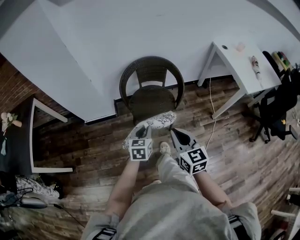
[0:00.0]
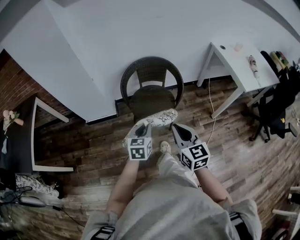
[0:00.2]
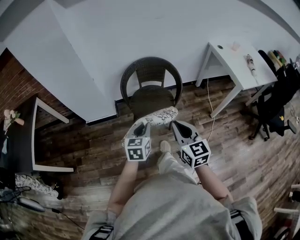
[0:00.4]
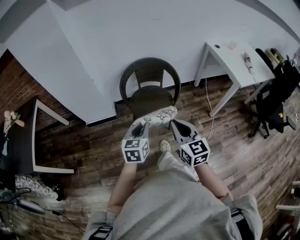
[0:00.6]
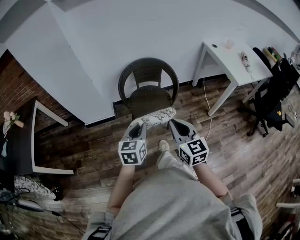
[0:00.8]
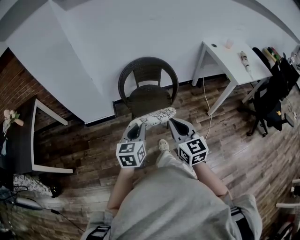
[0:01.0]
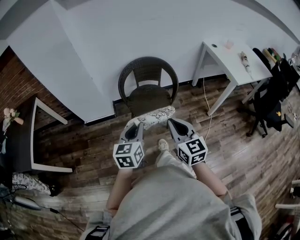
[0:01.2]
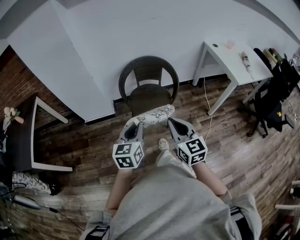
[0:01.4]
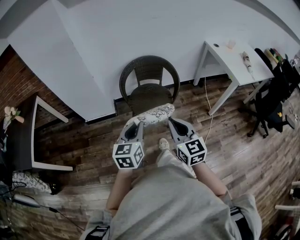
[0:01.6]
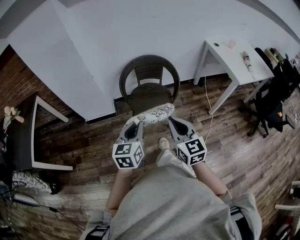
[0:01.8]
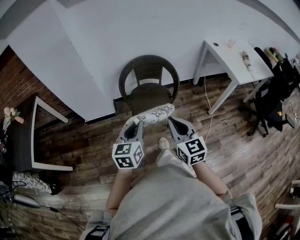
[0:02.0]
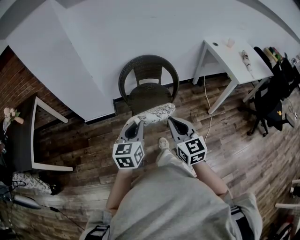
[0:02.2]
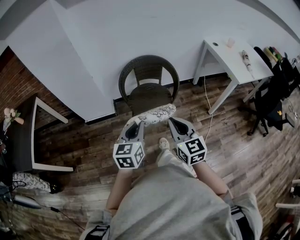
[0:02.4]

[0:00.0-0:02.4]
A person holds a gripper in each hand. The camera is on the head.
0:00.0 to 0:01.2: The right gripper travels backward by approximately 10 cm. The left gripper is displaced upward and backward by some 15 cm.
0:01.2 to 0:02.4: Neither gripper changes place.

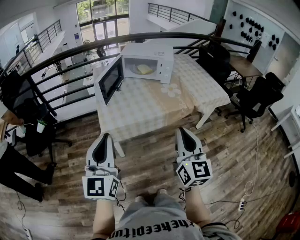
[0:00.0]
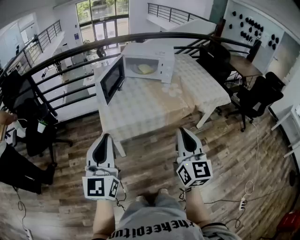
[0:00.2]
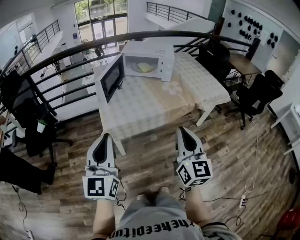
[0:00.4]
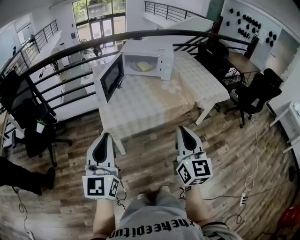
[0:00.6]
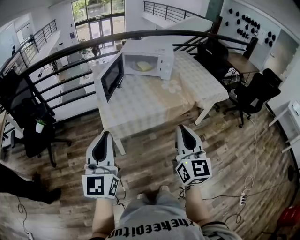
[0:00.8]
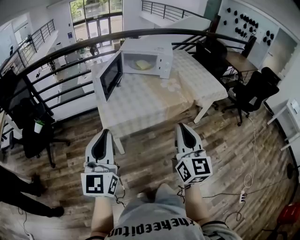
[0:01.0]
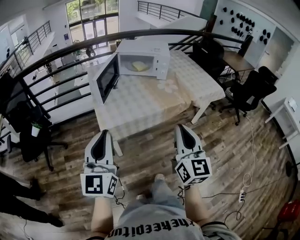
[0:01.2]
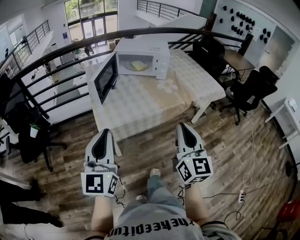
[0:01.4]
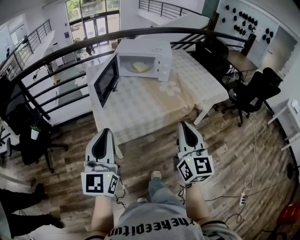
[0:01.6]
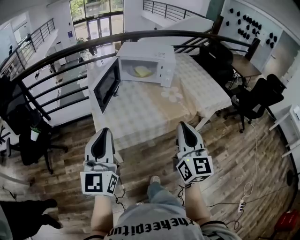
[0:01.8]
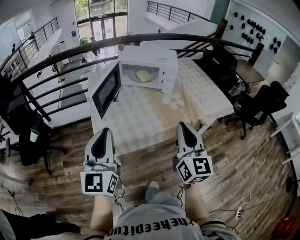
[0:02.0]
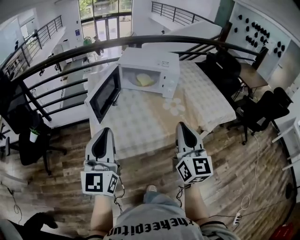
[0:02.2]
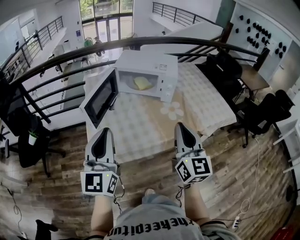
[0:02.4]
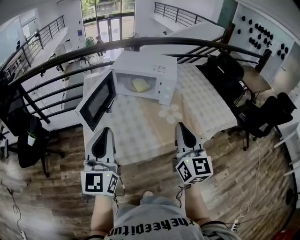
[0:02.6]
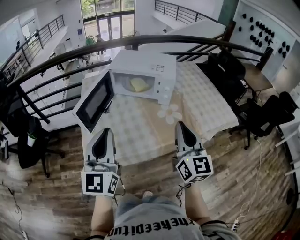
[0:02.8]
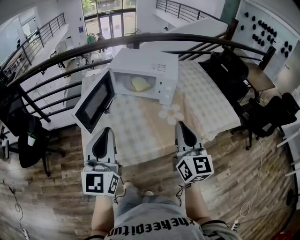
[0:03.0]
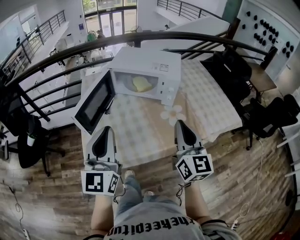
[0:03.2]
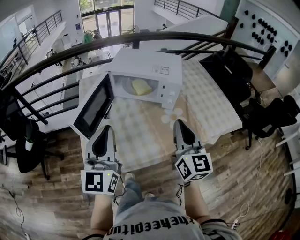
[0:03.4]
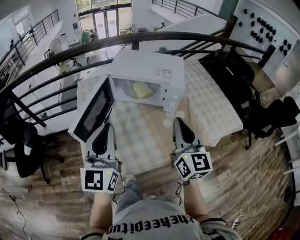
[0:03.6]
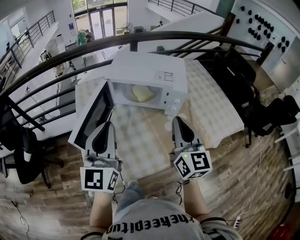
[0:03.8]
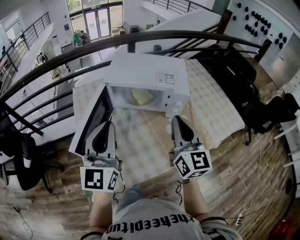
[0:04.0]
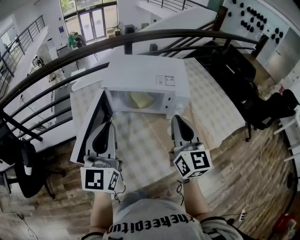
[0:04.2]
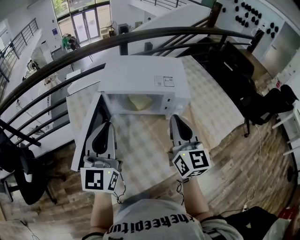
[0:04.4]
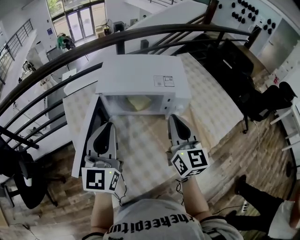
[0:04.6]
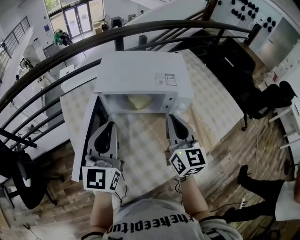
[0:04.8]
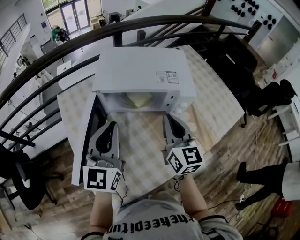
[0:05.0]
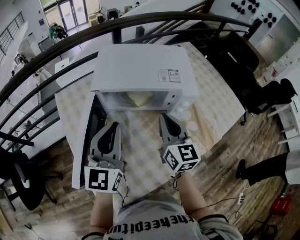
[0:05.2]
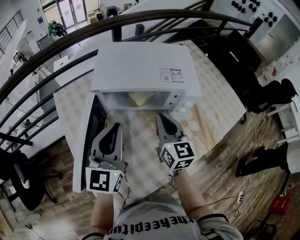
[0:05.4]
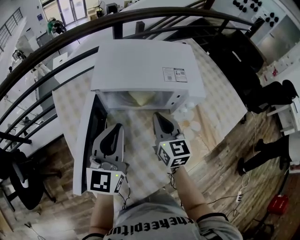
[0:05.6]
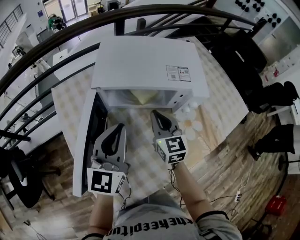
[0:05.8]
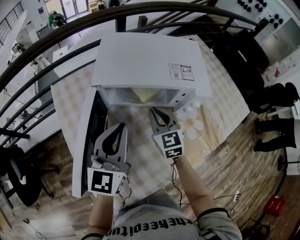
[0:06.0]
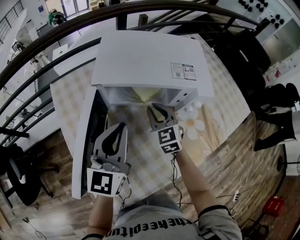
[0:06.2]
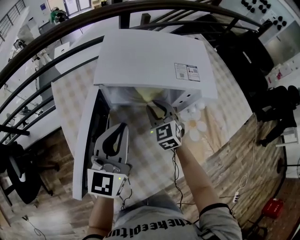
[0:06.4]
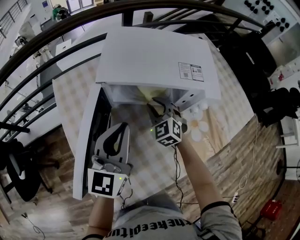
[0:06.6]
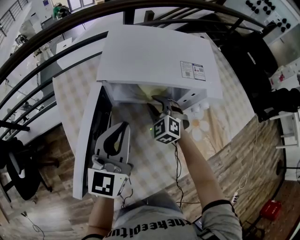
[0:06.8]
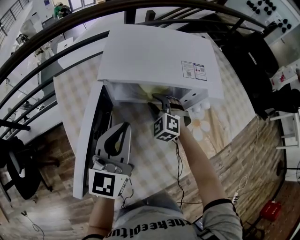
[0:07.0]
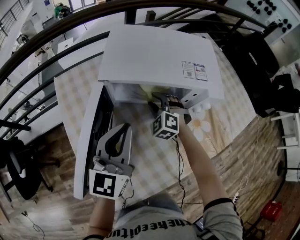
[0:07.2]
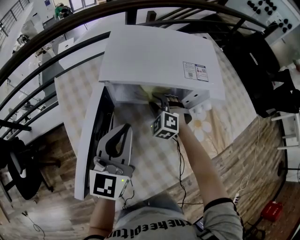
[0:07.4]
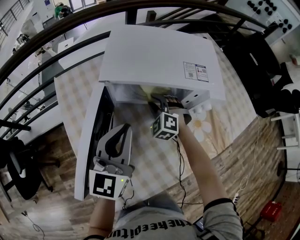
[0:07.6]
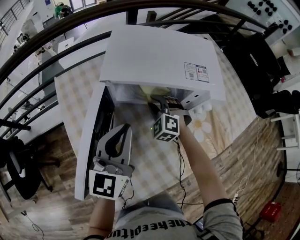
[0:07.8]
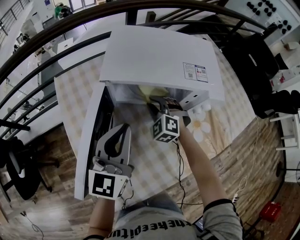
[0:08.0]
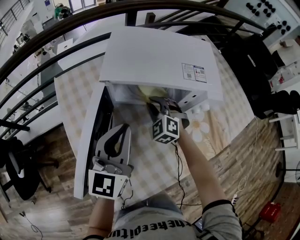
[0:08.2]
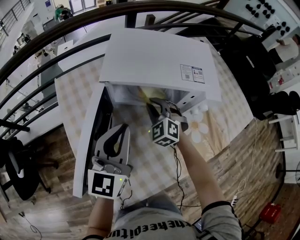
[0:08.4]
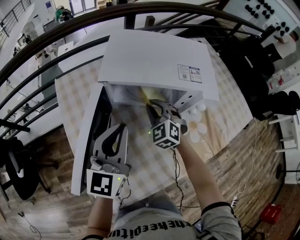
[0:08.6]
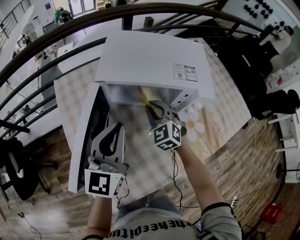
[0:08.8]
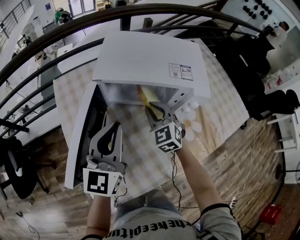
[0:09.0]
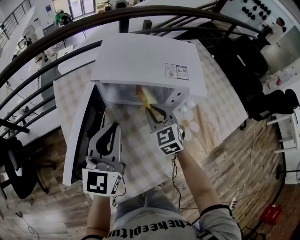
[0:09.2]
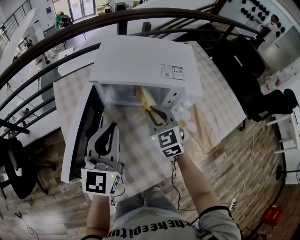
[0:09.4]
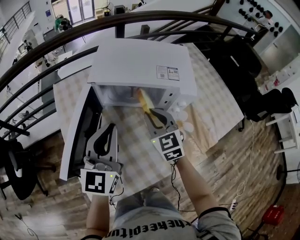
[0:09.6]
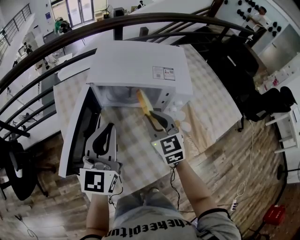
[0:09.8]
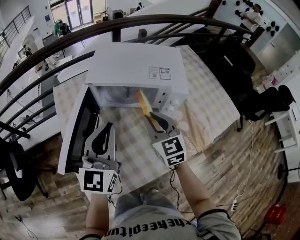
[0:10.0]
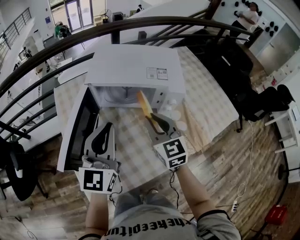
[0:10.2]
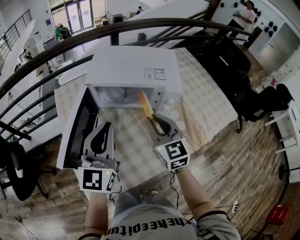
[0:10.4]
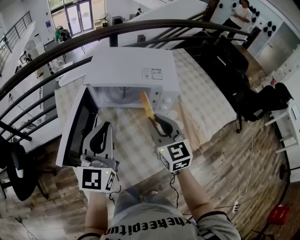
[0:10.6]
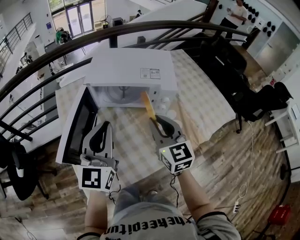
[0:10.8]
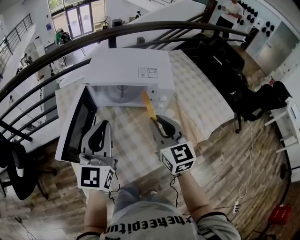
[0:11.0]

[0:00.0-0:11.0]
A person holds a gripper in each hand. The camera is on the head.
0:00.0 to 0:01.6: The grippers both shift forward by approximately 5 cm.
0:01.6 to 0:03.2: The right gripper is displaced forward by some 30 cm. The left gripper heads forward and to the right, covering approximately 25 cm.
0:03.2 to 0:04.8: The left gripper heads forward, covering some 25 cm. Meanwhile the right gripper shifts approximately 25 cm forward and to the left.
0:04.8 to 0:06.2: The right gripper heads downward, forward and to the left, covering roughly 25 cm, and swivels approximately 40 degrees. Meanwhile the left gripper is displaced downward by some 10 cm.
0:06.2 to 0:07.8: The right gripper heads downward, covering approximately 5 cm, and rolls counterclockwise, seen from behind, by roughly 40 degrees.
0:07.8 to 0:09.4: The right gripper travels upward and backward by approximately 15 cm, and turns by roughly 40 degrees. Meanwhile the left gripper shifts by approximately 5 cm.
0:09.4 to 0:11.0: The left gripper travels backward and upward by approximately 10 cm. The right gripper is displaced backward, upward and to the right by some 20 cm, and swivels about 20 degrees.

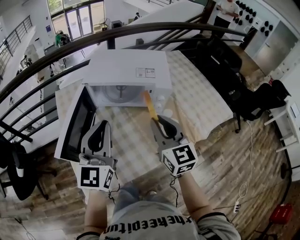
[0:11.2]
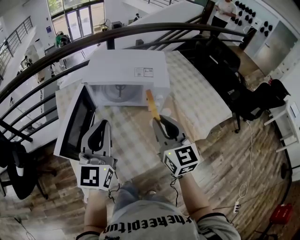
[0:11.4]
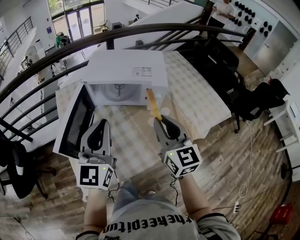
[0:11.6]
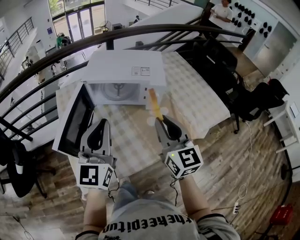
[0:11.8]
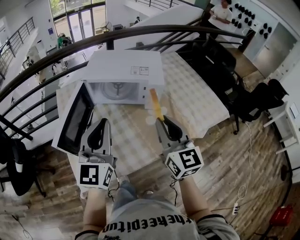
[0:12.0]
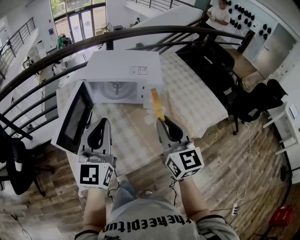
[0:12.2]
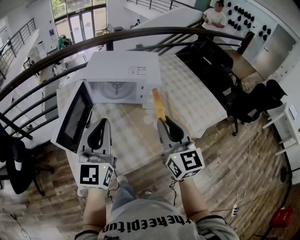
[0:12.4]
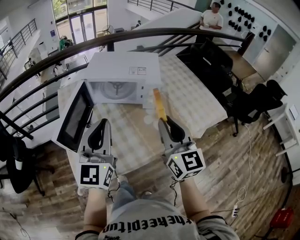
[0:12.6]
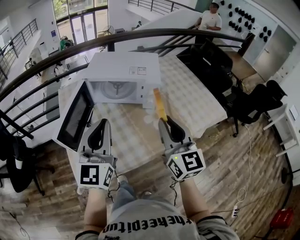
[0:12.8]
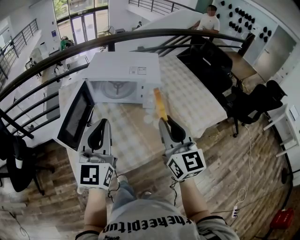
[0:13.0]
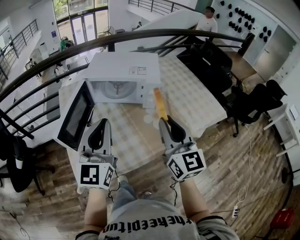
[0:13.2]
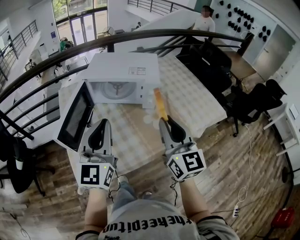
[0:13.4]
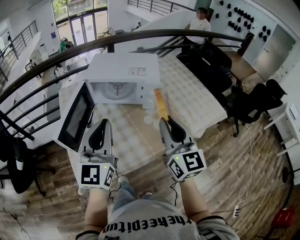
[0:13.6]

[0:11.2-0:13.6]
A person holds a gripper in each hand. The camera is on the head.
0:11.2 to 0:12.4: The right gripper heads backward, to the right and upward, covering some 10 cm. The left gripper goes some 5 cm backward.
0:12.4 to 0:13.6: There are only small adjustments of the grippers.

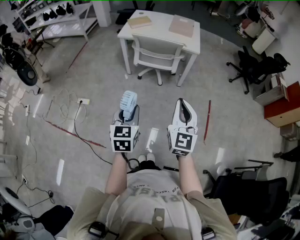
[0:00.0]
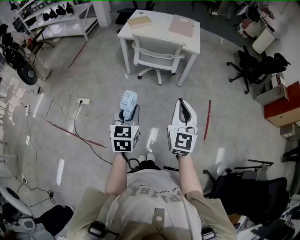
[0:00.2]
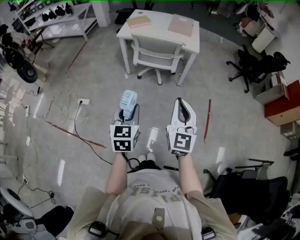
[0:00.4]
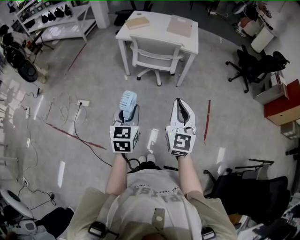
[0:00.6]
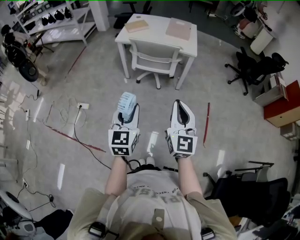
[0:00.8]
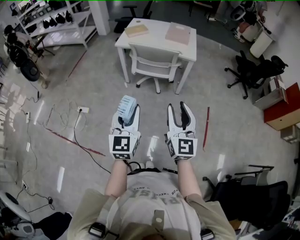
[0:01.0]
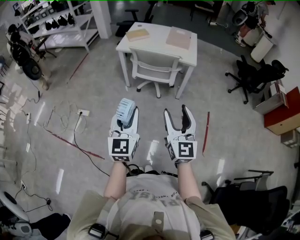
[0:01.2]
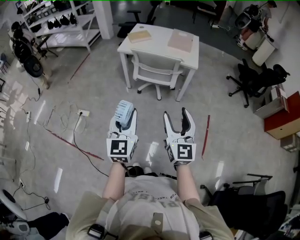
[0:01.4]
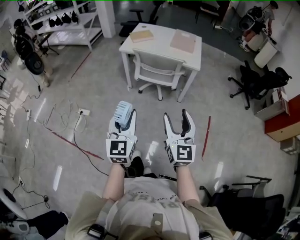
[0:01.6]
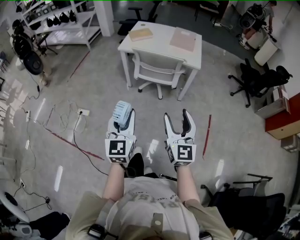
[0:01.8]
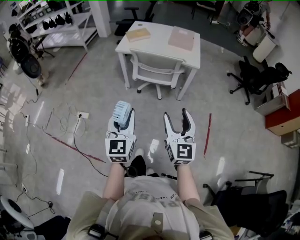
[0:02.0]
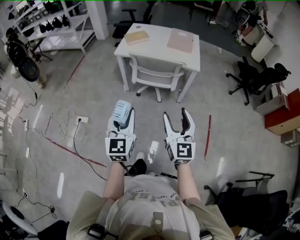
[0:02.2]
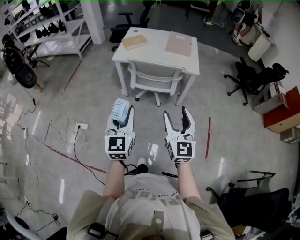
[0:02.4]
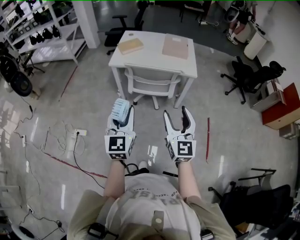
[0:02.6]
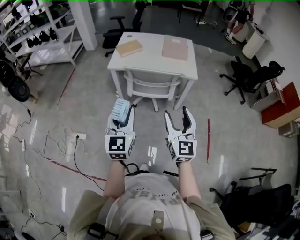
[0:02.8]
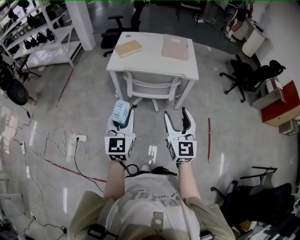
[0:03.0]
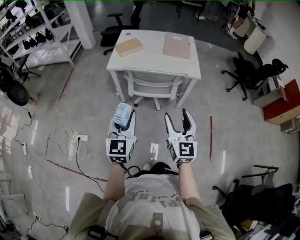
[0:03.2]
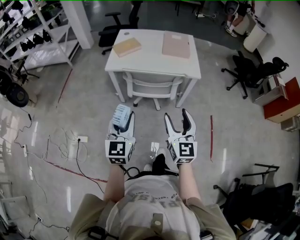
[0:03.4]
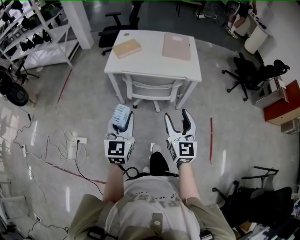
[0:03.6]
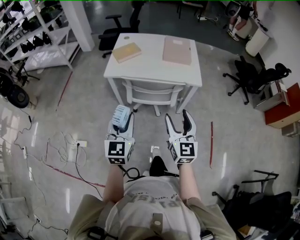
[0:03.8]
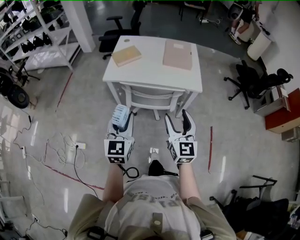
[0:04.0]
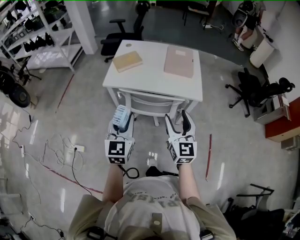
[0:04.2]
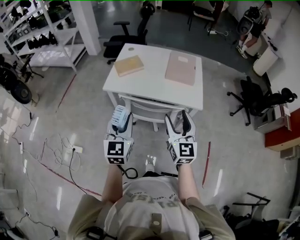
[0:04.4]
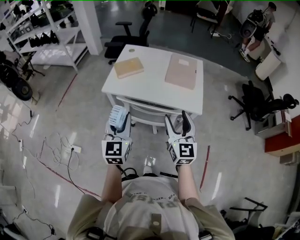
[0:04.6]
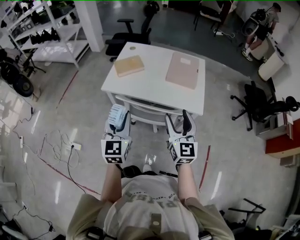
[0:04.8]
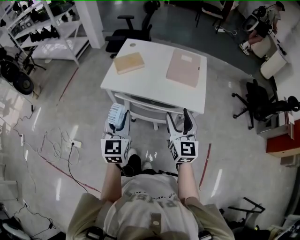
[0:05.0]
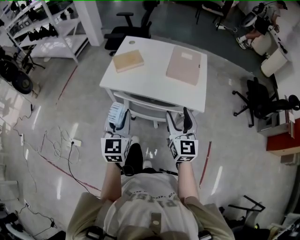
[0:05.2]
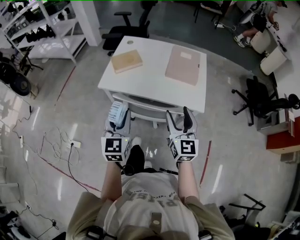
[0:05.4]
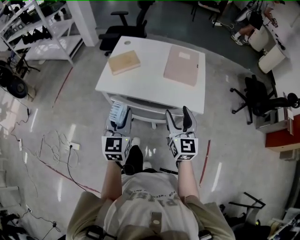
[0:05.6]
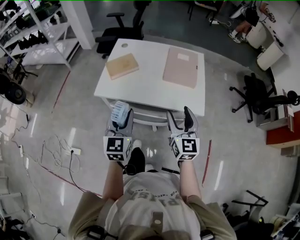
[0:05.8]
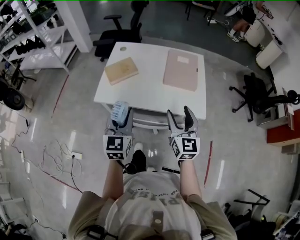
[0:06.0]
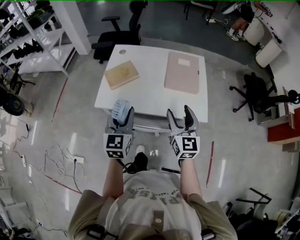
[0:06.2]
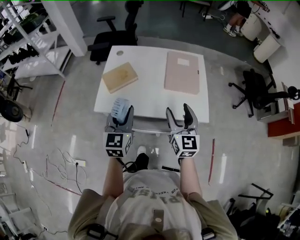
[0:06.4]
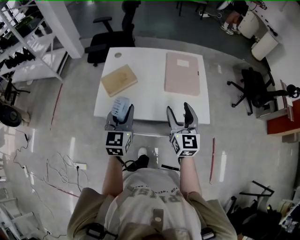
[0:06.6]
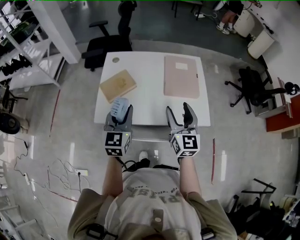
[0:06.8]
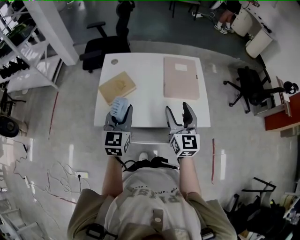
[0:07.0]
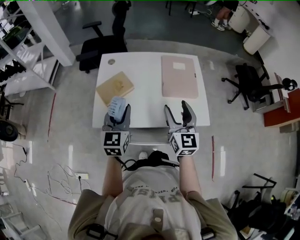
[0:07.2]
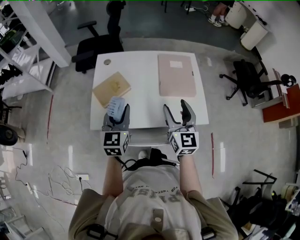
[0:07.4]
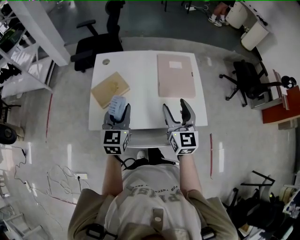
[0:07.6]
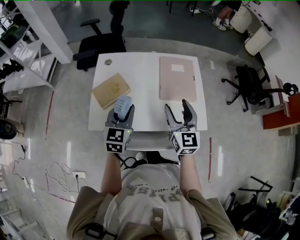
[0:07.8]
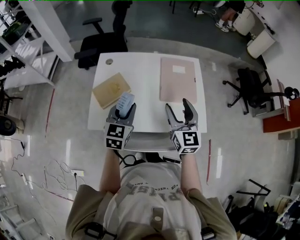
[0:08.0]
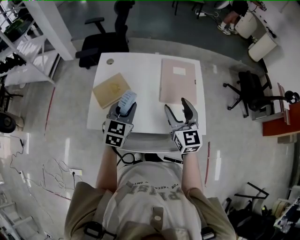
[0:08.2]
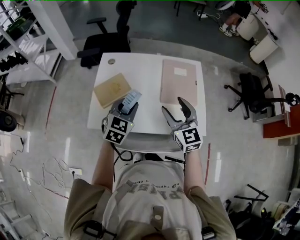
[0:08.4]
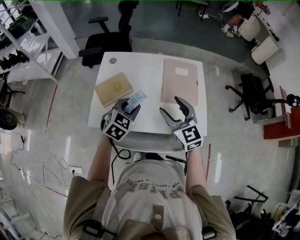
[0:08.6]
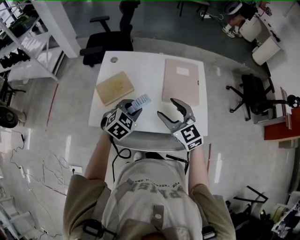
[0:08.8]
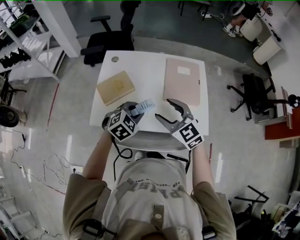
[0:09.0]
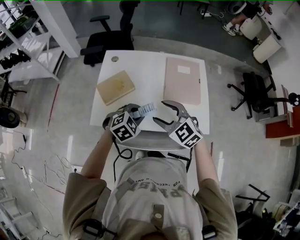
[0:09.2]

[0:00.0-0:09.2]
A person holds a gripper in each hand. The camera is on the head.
0:00.0 to 0:01.6: The right gripper opens up; the left gripper is displaced upward and forward by approximately 10 cm, and turns by approximately 20 degrees.
0:01.6 to 0:03.0: The grippers both shift forward by roughly 20 cm.
0:03.0 to 0:04.6: The two grippers go about 25 cm forward.
0:04.6 to 0:06.2: The grippers both shift forward by about 20 cm.
0:06.2 to 0:07.6: Both grippers move forward, approximately 15 cm.
0:07.6 to 0:09.2: The left gripper shifts approximately 10 cm downward and to the right, and points its fingers roughly 30 degrees further downward. Meanwhile the right gripper moves to the left, roughly 10 cm, and rotates approximately 50 degrees.
